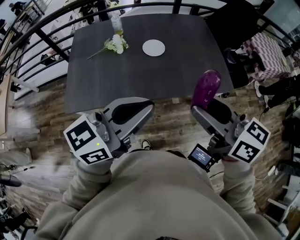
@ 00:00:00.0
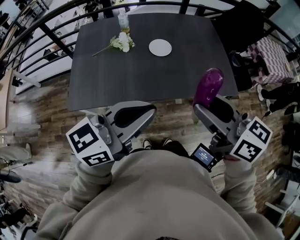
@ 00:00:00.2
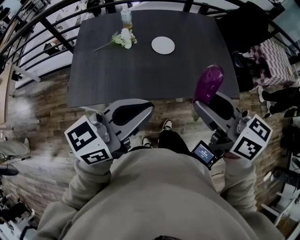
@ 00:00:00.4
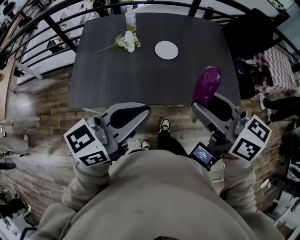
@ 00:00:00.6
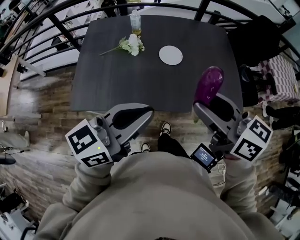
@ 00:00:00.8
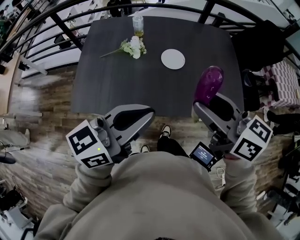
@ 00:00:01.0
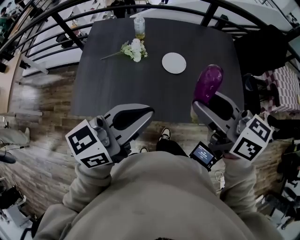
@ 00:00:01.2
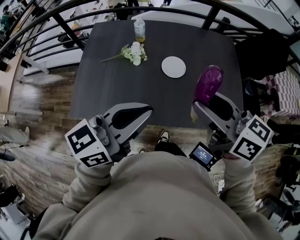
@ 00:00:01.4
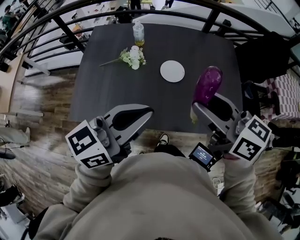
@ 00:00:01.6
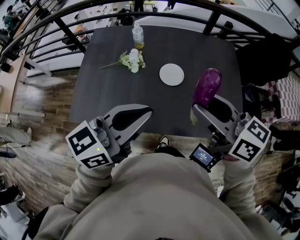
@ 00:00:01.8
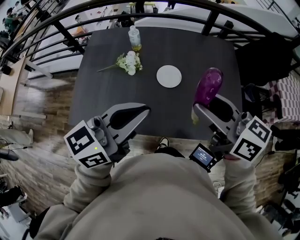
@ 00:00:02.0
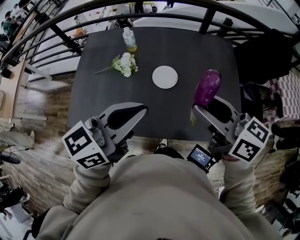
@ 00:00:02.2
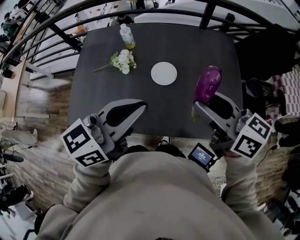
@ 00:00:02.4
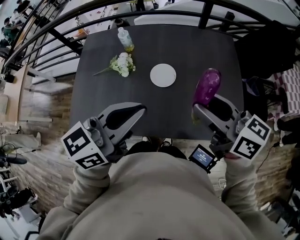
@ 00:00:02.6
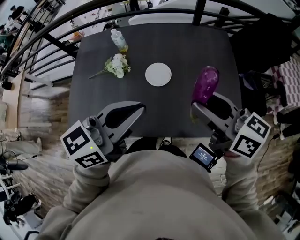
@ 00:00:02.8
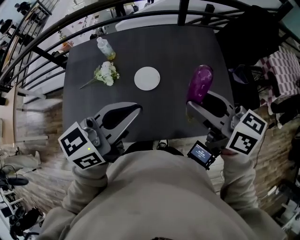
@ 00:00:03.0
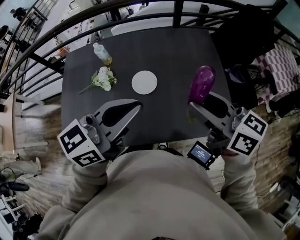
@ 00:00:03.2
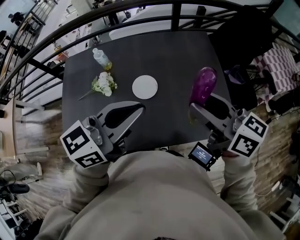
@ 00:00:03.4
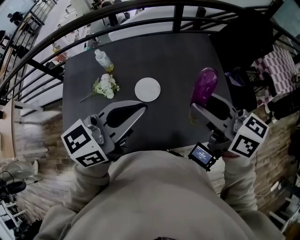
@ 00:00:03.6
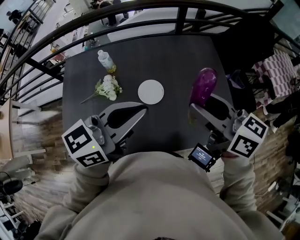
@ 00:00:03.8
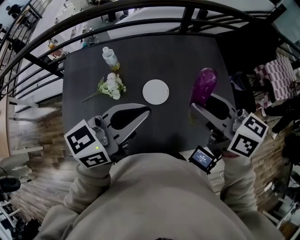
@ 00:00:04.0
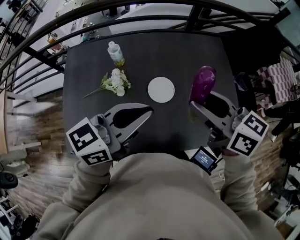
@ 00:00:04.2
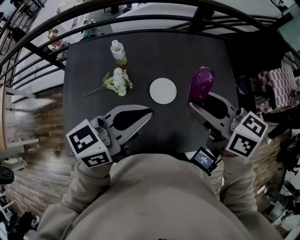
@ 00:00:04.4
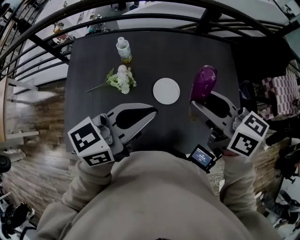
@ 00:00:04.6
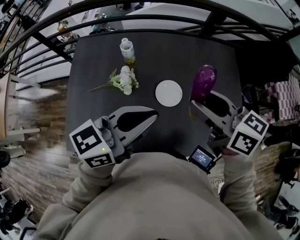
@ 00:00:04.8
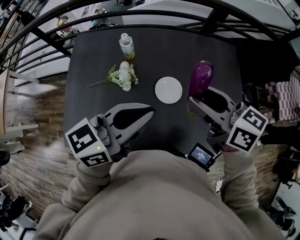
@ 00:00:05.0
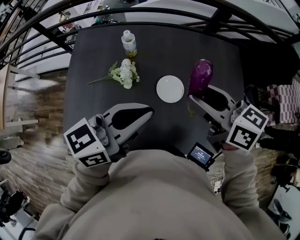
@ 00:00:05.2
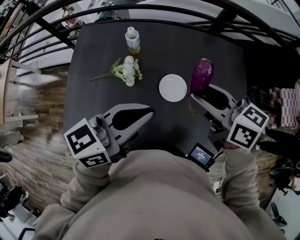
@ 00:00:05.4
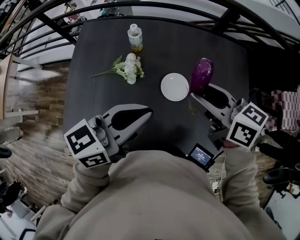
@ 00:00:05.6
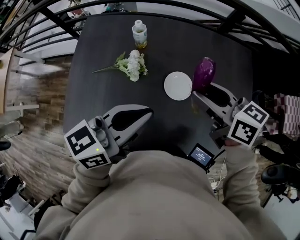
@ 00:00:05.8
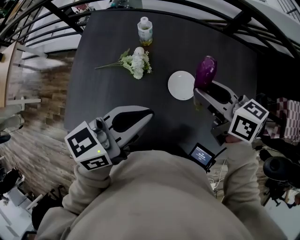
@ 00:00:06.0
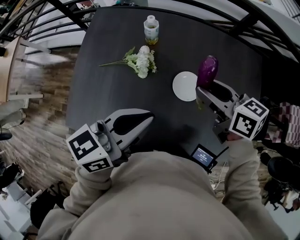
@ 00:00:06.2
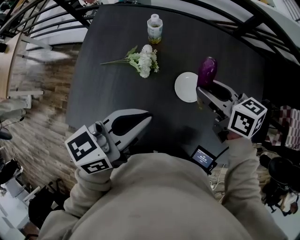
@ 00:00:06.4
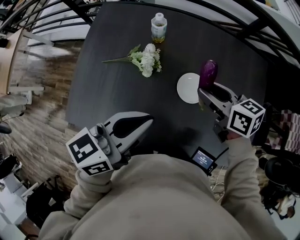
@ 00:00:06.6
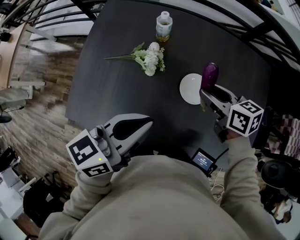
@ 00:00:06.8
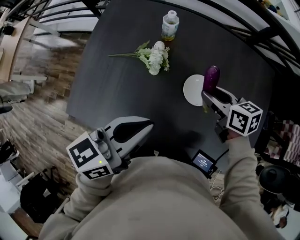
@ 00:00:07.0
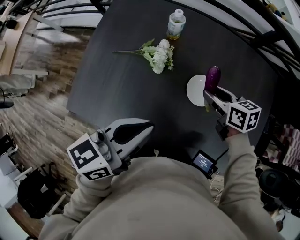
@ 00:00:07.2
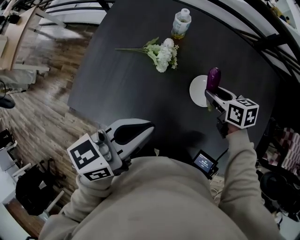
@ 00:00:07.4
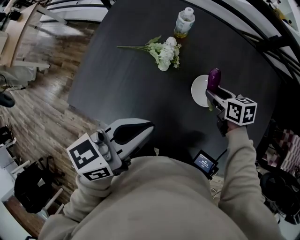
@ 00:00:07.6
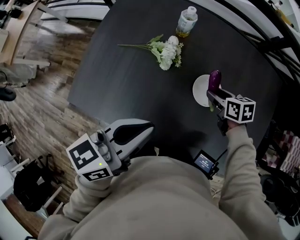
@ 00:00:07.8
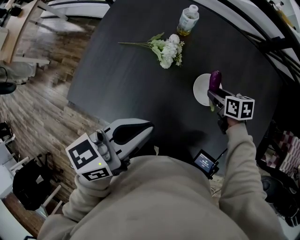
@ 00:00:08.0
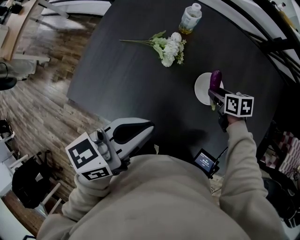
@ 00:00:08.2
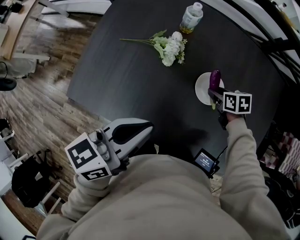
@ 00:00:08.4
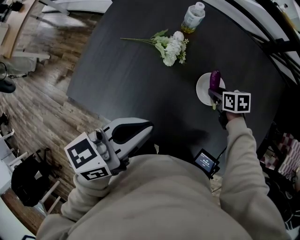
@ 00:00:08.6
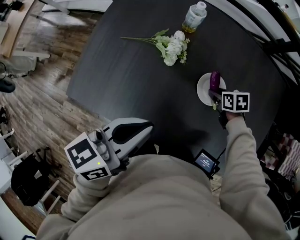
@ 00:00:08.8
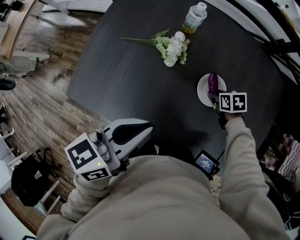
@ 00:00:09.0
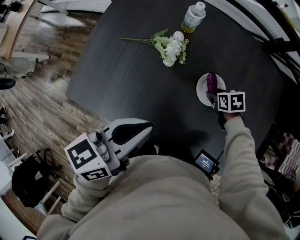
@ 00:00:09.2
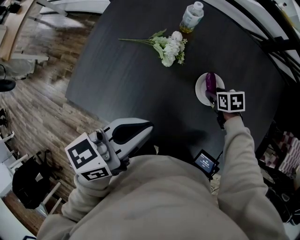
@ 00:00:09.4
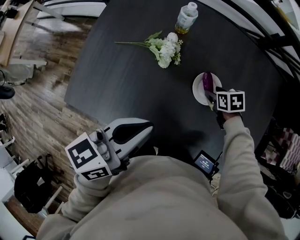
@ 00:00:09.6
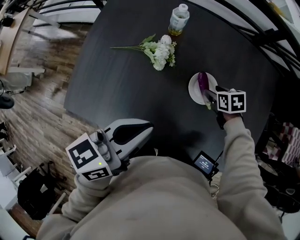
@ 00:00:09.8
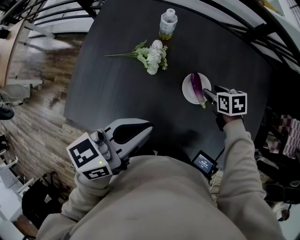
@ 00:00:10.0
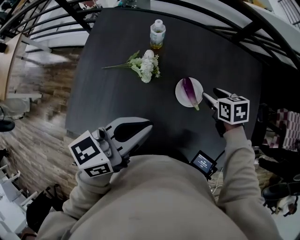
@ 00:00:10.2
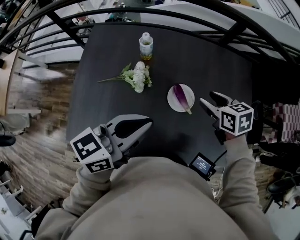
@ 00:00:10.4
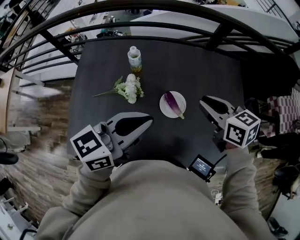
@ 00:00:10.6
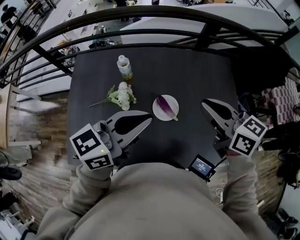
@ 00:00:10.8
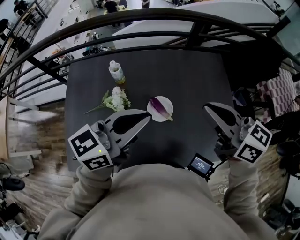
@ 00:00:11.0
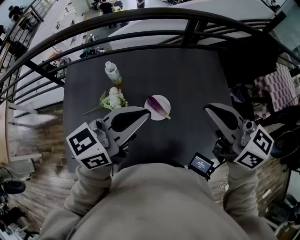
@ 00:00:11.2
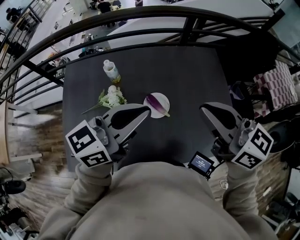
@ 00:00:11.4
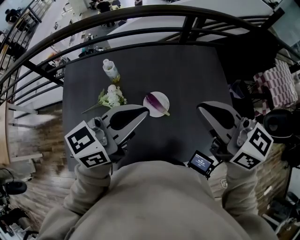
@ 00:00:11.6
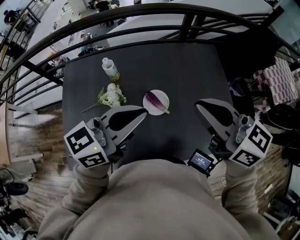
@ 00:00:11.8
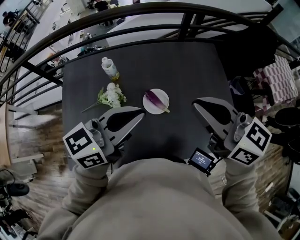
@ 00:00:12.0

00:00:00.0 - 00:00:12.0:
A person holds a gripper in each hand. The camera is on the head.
00:00:00.0 - 00:00:01.6: Both grippers travel together forward, some 20 cm.
00:00:01.6 - 00:00:03.0: The two grippers go about 15 cm to the right and forward.
00:00:03.0 - 00:00:04.4: The grippers both shift to the left and forward by about 15 cm.
00:00:04.4 - 00:00:06.0: The right gripper moves downward and forward, approximately 15 cm. Meanwhile the left gripper heads downward, covering some 5 cm.
00:00:06.0 - 00:00:07.6: The right gripper is displaced downward by about 20 cm, and swivels about 20 degrees; the left gripper is displaced to the left by about 5 cm.
00:00:07.6 - 00:00:09.0: The right gripper shifts about 10 cm downward, and rotates roughly 20 degrees.
00:00:09.0 - 00:00:10.4: The right gripper goes roughly 20 cm upward, and swivels roughly 30 degrees. The left gripper travels upward and to the right by about 10 cm, and rotates some 20 degrees.
00:00:10.4 - 00:00:12.0: The right gripper travels upward and backward by some 25 cm, tips its fingers upward by approximately 40 degrees, and closes its fingers. The left gripper goes roughly 10 cm to the right and upward.

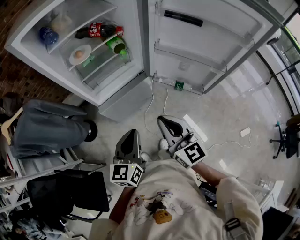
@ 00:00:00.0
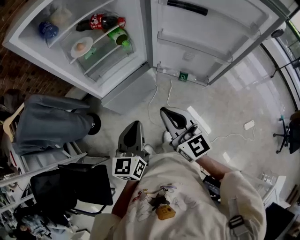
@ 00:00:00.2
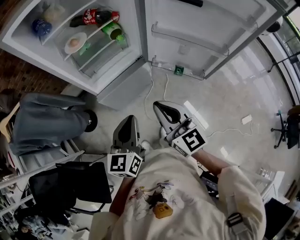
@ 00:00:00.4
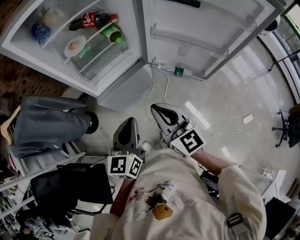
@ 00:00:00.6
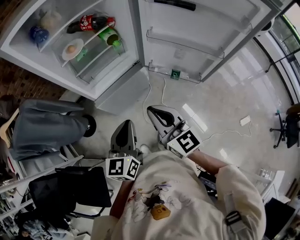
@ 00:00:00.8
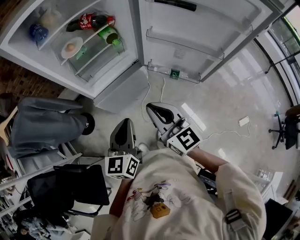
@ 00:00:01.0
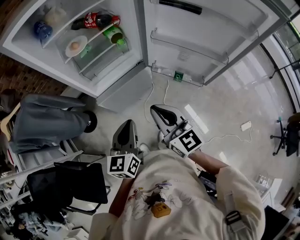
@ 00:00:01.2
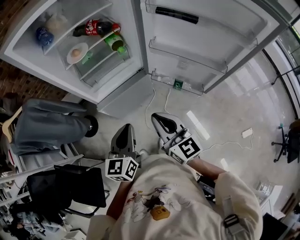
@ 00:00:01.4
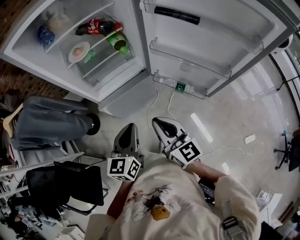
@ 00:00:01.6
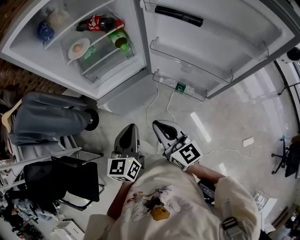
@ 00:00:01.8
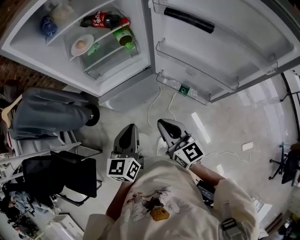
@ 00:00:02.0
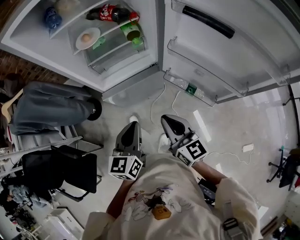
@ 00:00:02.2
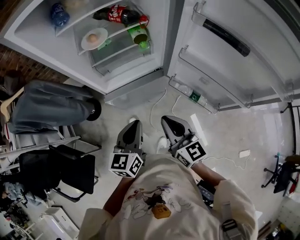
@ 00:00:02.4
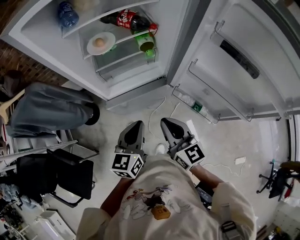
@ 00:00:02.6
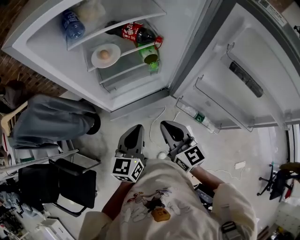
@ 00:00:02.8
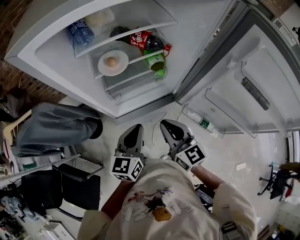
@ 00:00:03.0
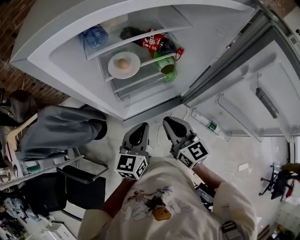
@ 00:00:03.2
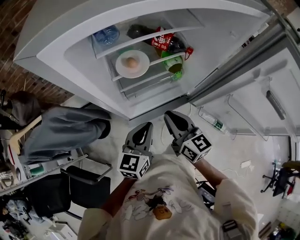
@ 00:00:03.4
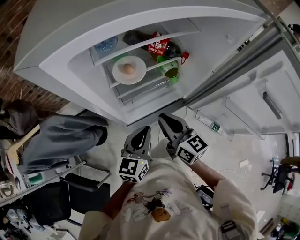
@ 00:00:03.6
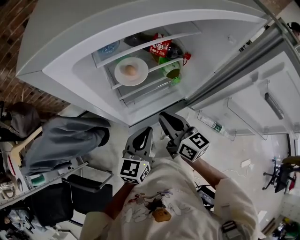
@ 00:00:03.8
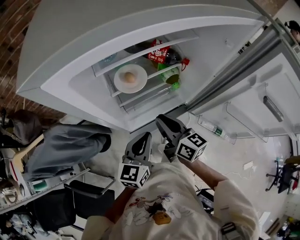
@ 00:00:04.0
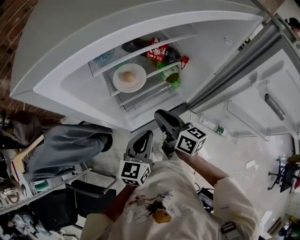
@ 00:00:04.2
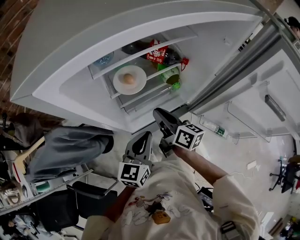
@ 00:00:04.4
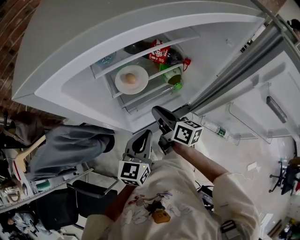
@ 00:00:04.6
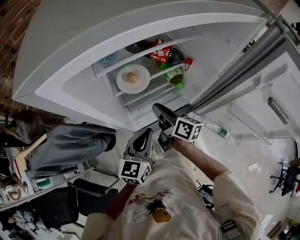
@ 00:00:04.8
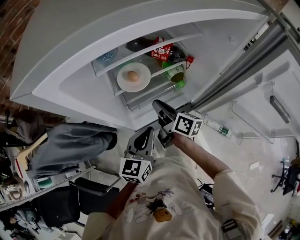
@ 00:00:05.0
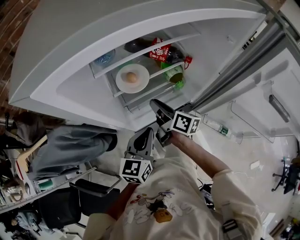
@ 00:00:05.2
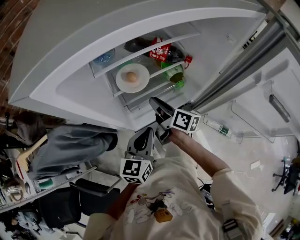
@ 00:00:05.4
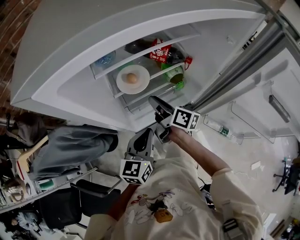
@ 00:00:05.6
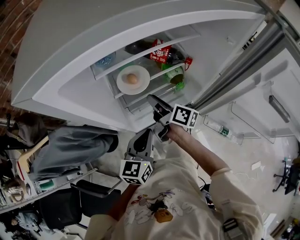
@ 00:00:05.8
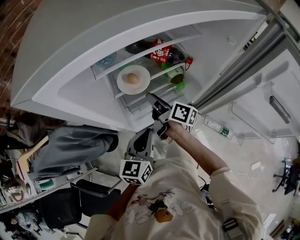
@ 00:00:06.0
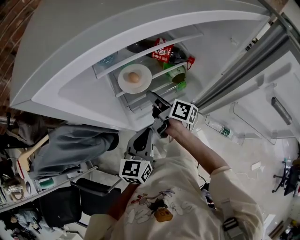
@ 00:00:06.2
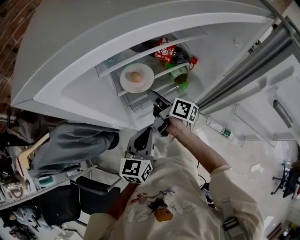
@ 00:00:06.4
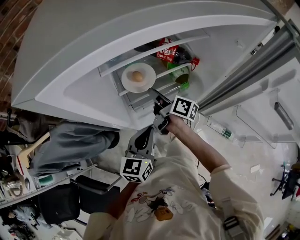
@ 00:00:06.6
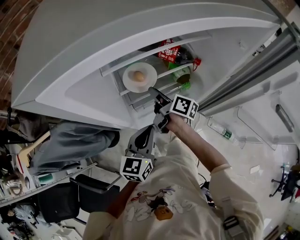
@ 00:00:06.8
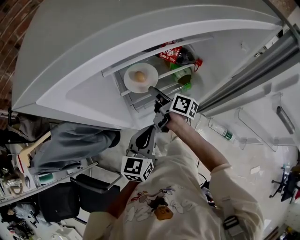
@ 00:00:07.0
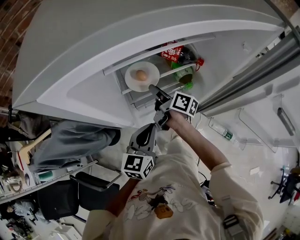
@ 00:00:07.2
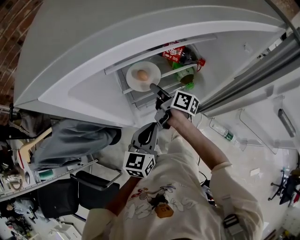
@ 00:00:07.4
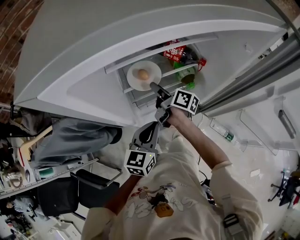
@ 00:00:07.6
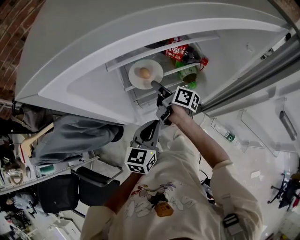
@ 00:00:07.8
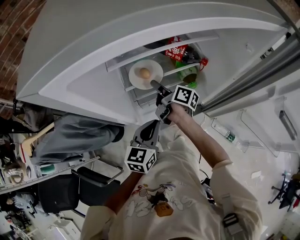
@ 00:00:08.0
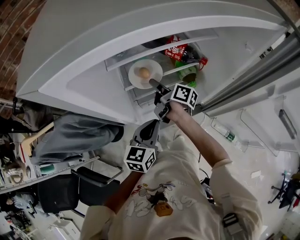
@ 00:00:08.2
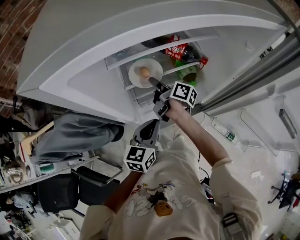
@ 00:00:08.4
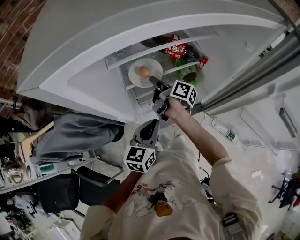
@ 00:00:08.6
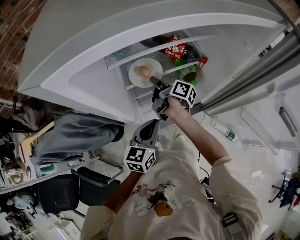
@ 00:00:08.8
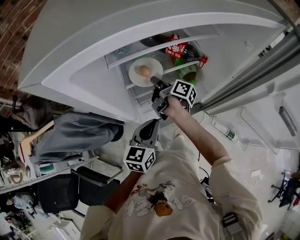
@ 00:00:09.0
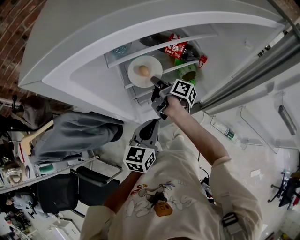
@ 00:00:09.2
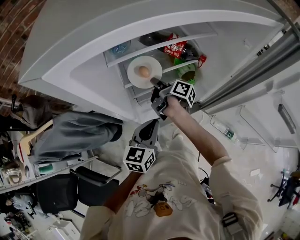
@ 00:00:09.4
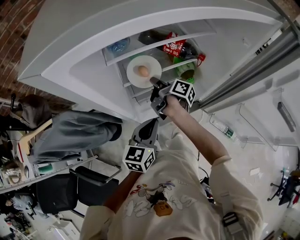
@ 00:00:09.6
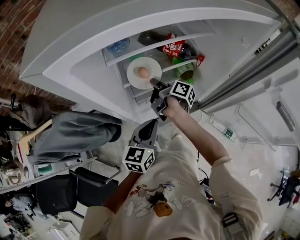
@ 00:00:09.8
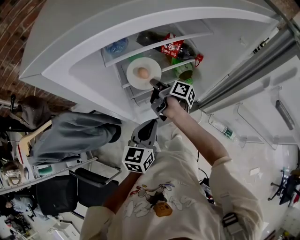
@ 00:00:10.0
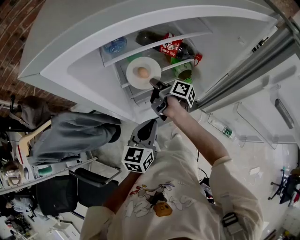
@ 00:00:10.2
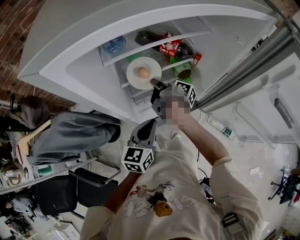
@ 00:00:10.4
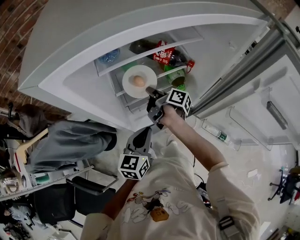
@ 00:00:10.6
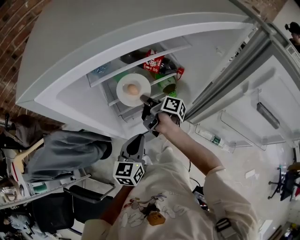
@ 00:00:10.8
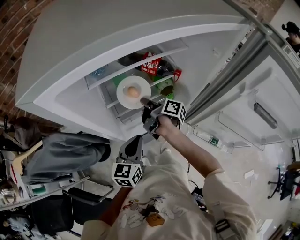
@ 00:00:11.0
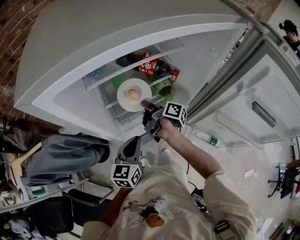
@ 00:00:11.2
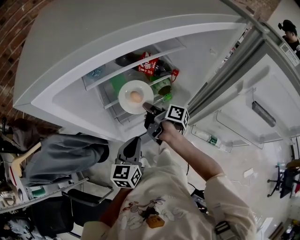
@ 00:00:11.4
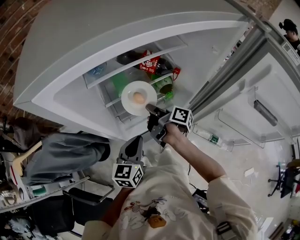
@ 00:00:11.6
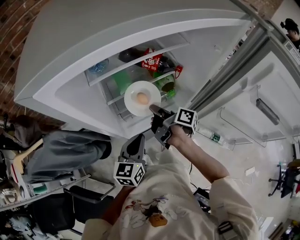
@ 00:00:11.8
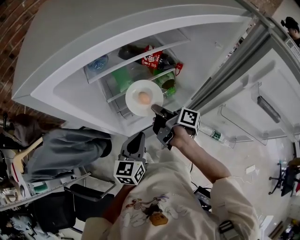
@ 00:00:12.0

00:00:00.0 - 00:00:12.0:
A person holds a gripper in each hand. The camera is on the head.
00:00:00.0 - 00:00:01.6: The left gripper moves to the right, approximately 5 cm. The right gripper ends up some 5 cm from where it was.
00:00:01.6 - 00:00:03.0: The grippers both shift forward and to the left by roughly 20 cm.
00:00:03.0 - 00:00:04.4: The left gripper moves forward and to the left, approximately 10 cm. The right gripper heads forward and to the left, covering some 15 cm, and rotates around the line of its fingers by roughly 40 degrees, clockwise from behind.
00:00:04.4 - 00:00:06.0: The right gripper goes approximately 10 cm forward, and swivels approximately 20 degrees.
00:00:06.0 - 00:00:07.6: The right gripper moves approximately 5 cm.
00:00:07.6 - 00:00:10.4: The grippers stay close to where they were, moving slightly.
00:00:10.4 - 00:00:12.0: The right gripper goes some 10 cm backward and to the right.
